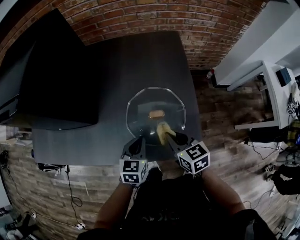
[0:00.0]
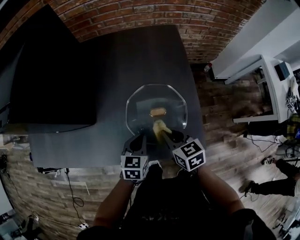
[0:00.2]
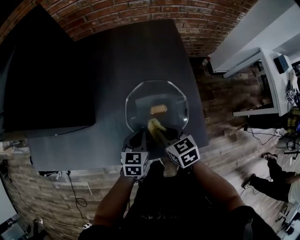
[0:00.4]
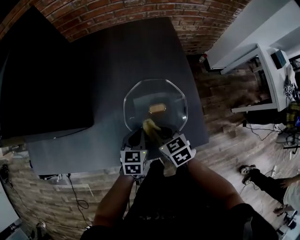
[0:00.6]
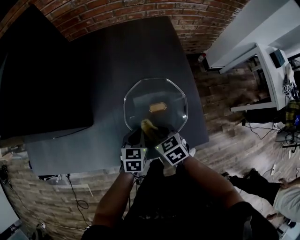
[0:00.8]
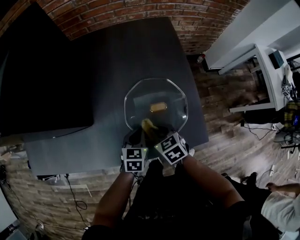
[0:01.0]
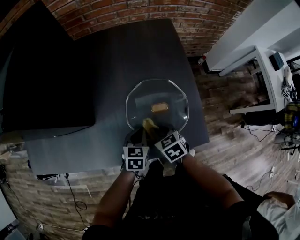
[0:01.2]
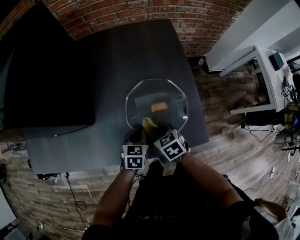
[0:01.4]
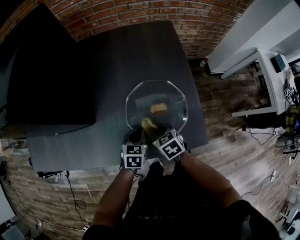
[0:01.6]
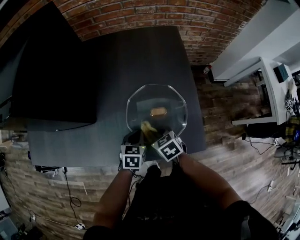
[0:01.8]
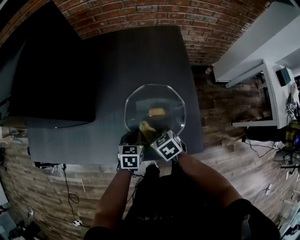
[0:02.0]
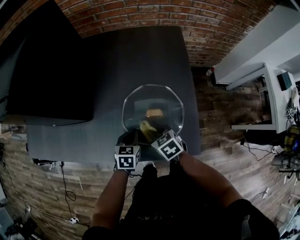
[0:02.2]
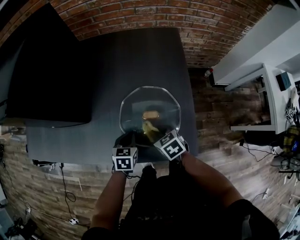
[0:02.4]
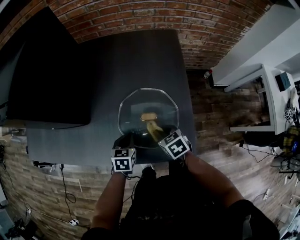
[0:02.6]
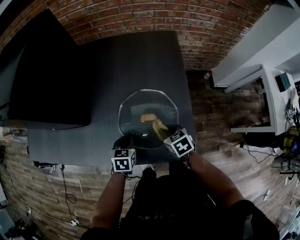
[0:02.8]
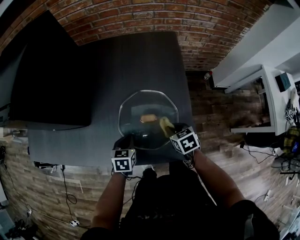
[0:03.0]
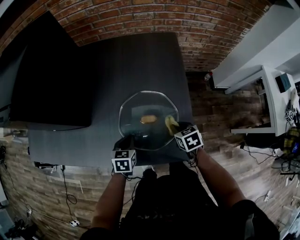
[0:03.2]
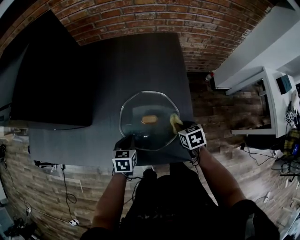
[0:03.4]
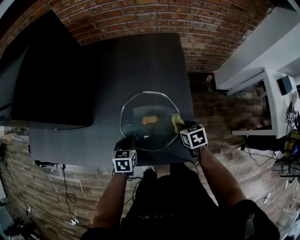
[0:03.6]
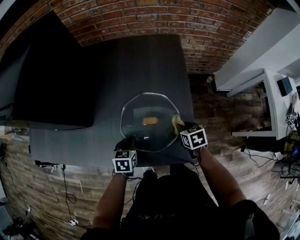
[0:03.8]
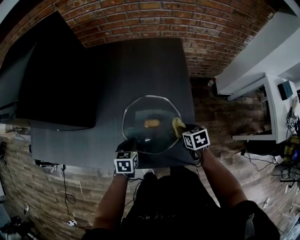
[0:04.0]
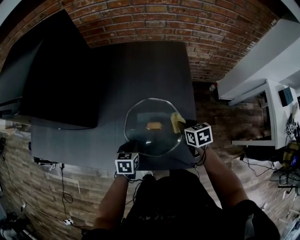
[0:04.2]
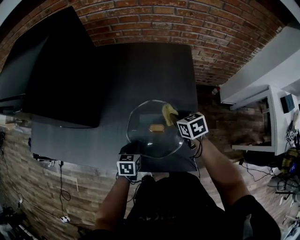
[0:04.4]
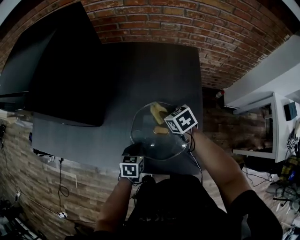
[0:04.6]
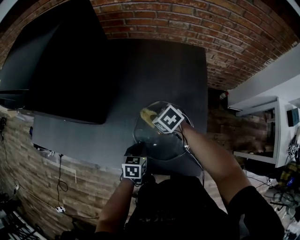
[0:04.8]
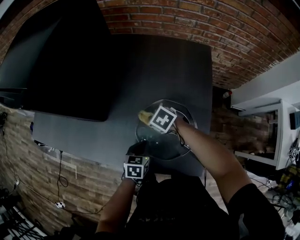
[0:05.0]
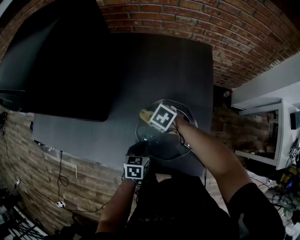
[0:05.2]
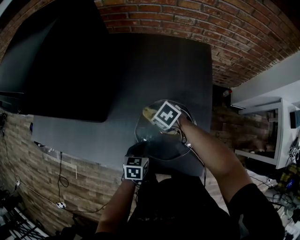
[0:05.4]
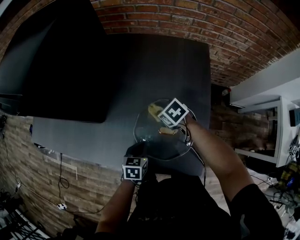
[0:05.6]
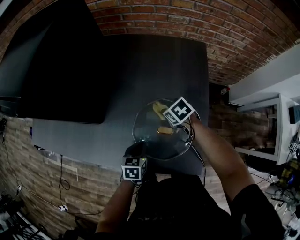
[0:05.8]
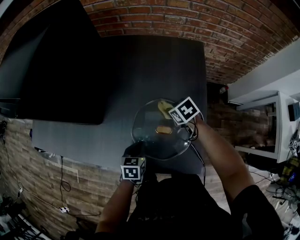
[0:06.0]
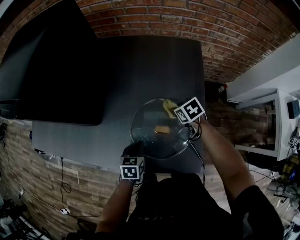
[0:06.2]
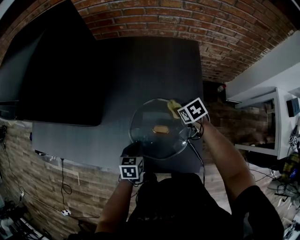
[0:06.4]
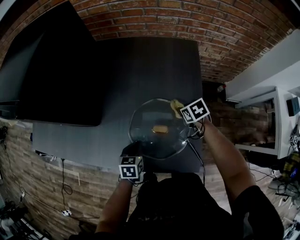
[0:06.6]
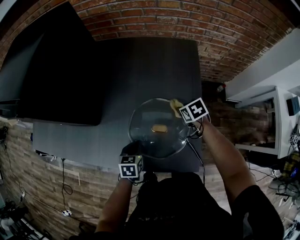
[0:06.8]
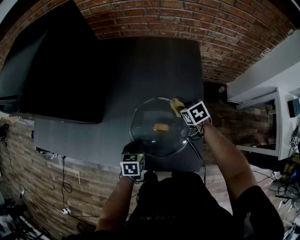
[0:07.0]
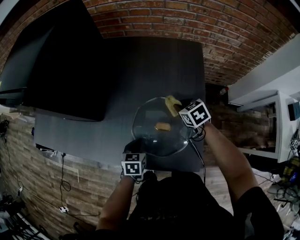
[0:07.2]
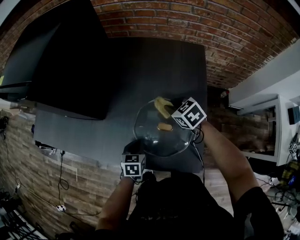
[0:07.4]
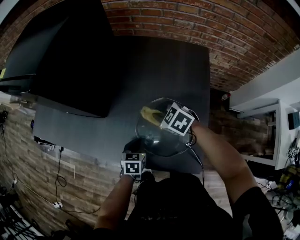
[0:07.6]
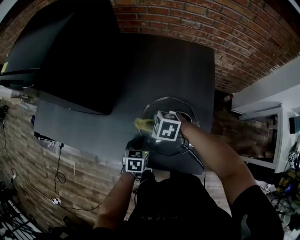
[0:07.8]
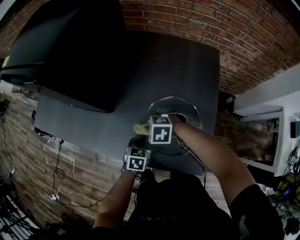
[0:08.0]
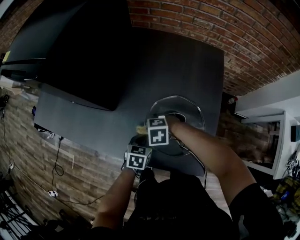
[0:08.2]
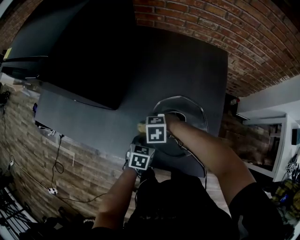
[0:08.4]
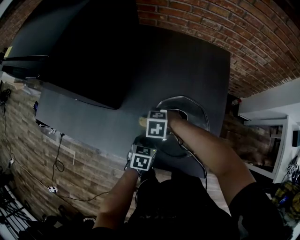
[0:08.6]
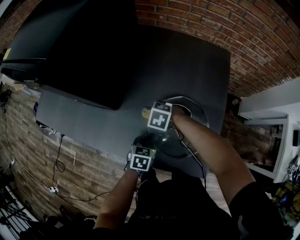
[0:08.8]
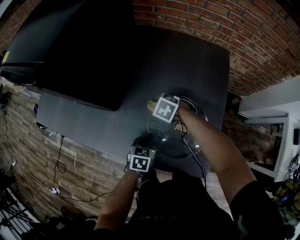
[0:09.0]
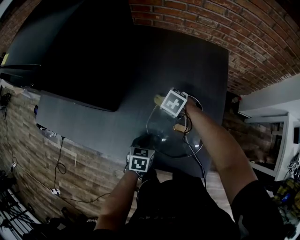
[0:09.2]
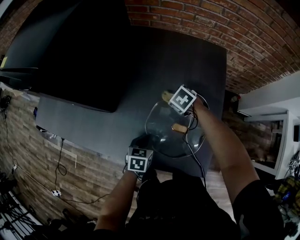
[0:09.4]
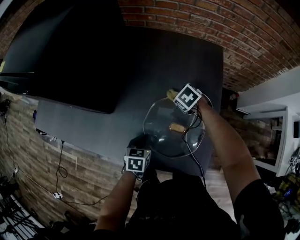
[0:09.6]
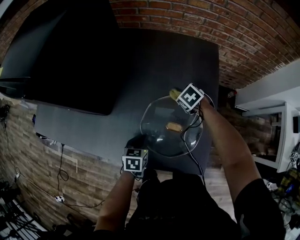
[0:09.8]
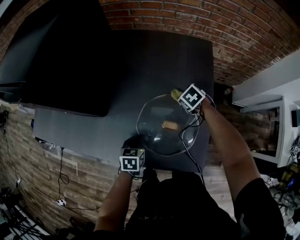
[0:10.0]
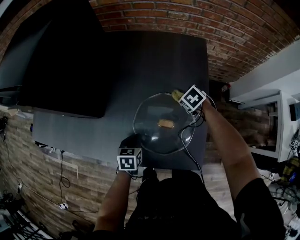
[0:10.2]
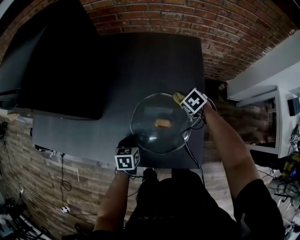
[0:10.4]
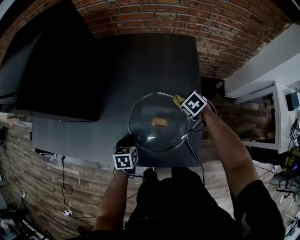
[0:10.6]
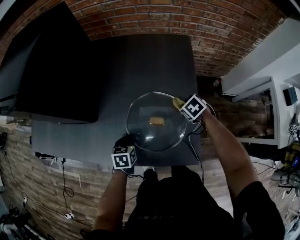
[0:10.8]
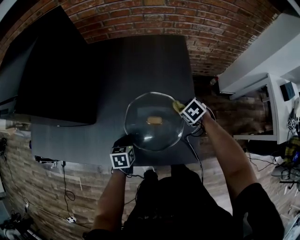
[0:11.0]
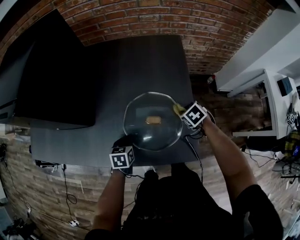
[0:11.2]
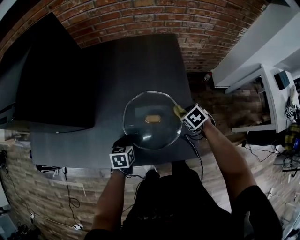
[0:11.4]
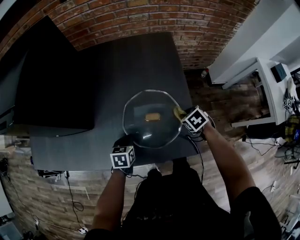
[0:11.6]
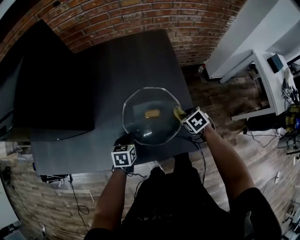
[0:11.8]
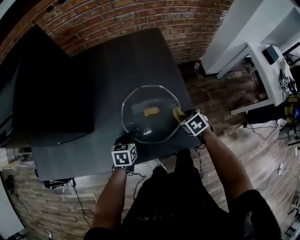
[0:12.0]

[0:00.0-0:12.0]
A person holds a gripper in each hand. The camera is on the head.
0.0 to 1.6 s: The left gripper heads downward, covering roughly 10 cm, while the right gripper travels downward and to the left by some 15 cm, and rotates approximately 20 degrees.
1.6 to 3.0 s: The right gripper travels to the right by roughly 15 cm.
3.0 to 4.4 s: The right gripper moves forward and upward, about 10 cm.
4.4 to 6.0 s: The right gripper travels forward and downward by about 10 cm, reaches some 15 cm to the left, then returns, and turns by about 20 degrees.
6.0 to 7.6 s: The right gripper travels to the left and upward by about 15 cm, and changes its angle by roughly 30 degrees.
7.6 to 9.0 s: The right gripper travels downward by roughly 10 cm, and changes its angle by some 20 degrees.
9.0 to 10.4 s: The right gripper moves to the right, approximately 25 cm, and changes its angle by some 30 degrees.
10.4 to 12.0 s: The right gripper shifts roughly 20 cm backward, and changes its angle by roughly 30 degrees.

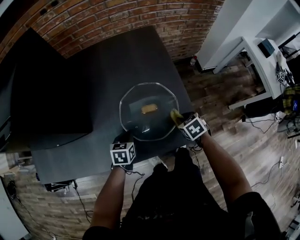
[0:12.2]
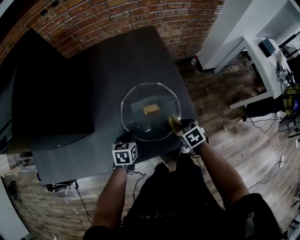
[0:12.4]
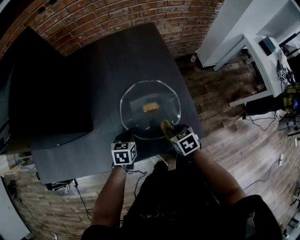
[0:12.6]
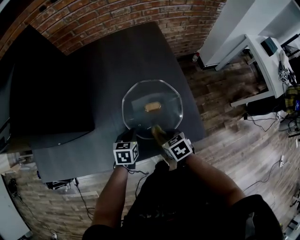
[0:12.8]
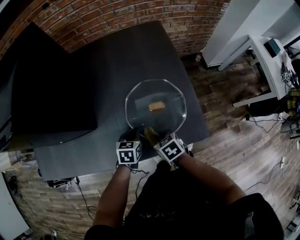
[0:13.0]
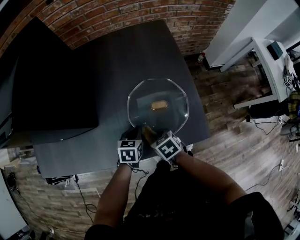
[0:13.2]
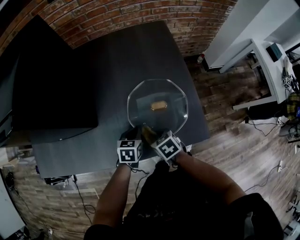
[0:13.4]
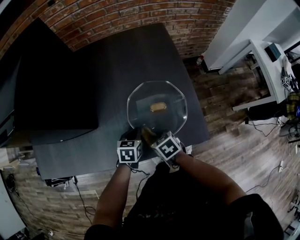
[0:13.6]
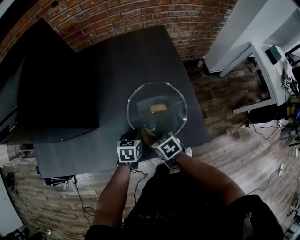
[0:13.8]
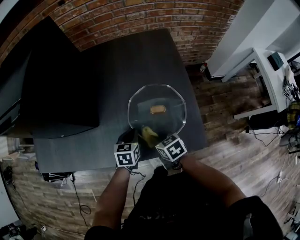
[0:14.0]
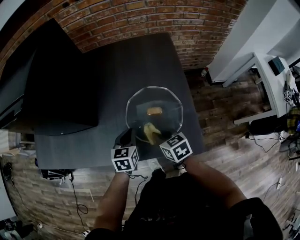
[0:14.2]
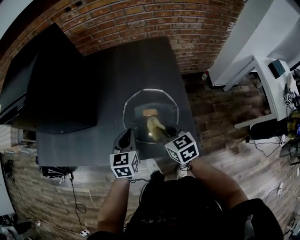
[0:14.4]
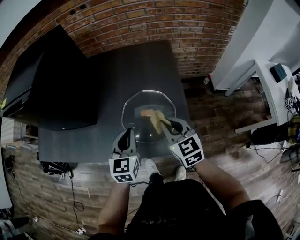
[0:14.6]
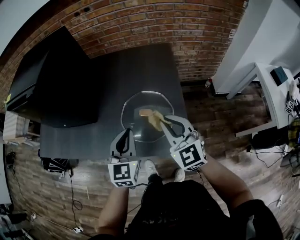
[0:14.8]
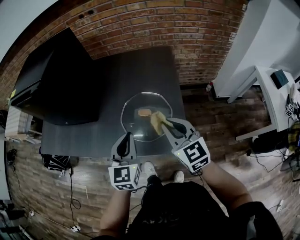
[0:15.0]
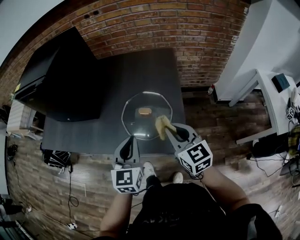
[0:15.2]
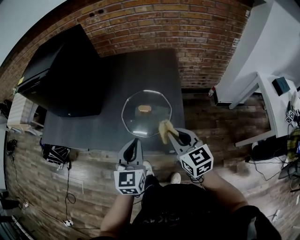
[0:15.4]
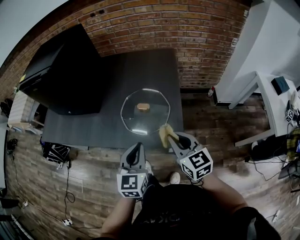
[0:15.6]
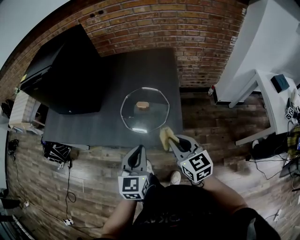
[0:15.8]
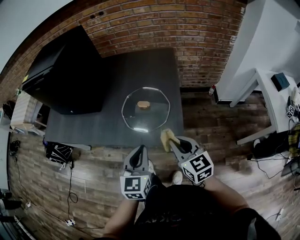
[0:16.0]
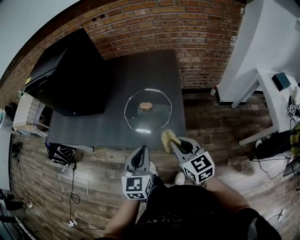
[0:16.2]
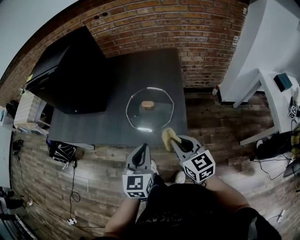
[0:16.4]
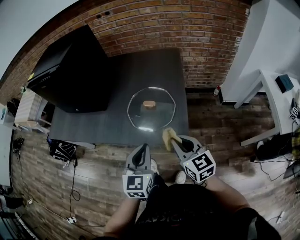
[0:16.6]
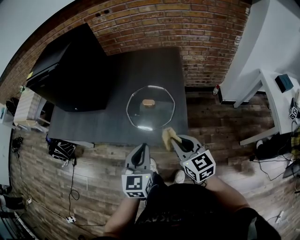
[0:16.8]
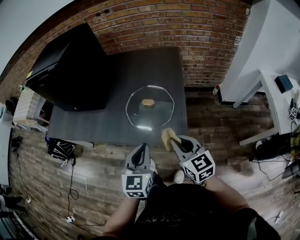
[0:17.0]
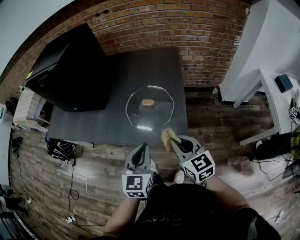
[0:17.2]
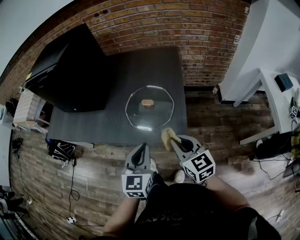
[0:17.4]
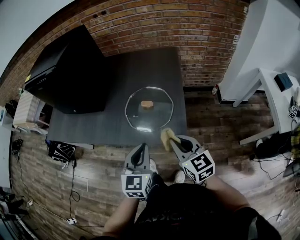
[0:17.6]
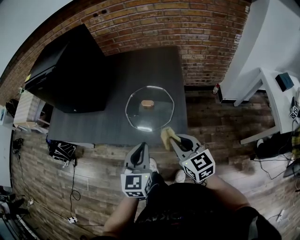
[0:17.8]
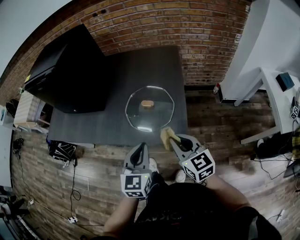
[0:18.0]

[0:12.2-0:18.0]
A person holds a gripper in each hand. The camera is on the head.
12.2 to 13.6 s: The right gripper is displaced to the left by approximately 20 cm.
13.6 to 15.0 s: The right gripper travels upward and to the right by approximately 30 cm, and tilts its fingers about 40 degrees upward, while the left gripper is displaced upward by roughly 25 cm, and tips its fingers upward by approximately 40 degrees.
15.0 to 16.6 s: Both grippers travel together backward, about 15 cm.
16.6 to 18.0 s: The grippers move only a little.

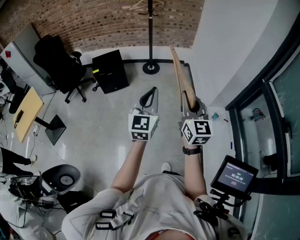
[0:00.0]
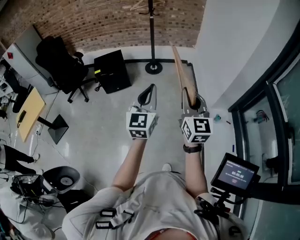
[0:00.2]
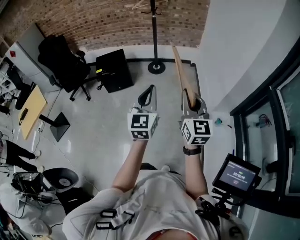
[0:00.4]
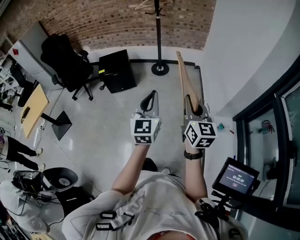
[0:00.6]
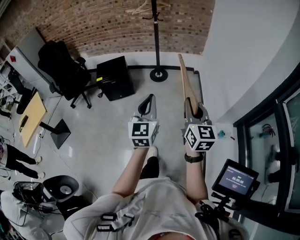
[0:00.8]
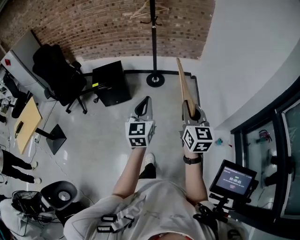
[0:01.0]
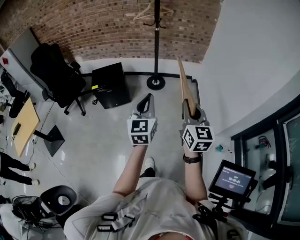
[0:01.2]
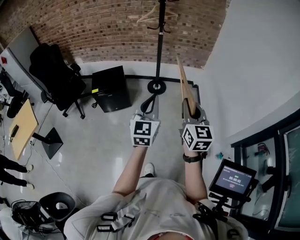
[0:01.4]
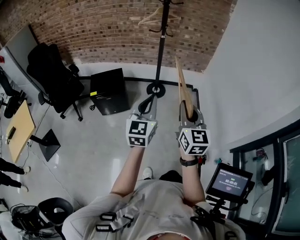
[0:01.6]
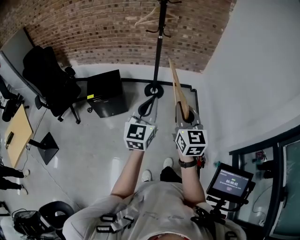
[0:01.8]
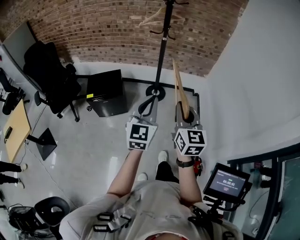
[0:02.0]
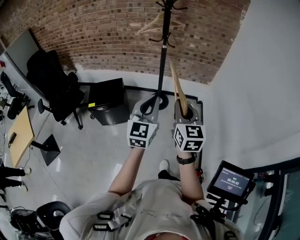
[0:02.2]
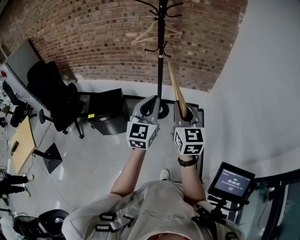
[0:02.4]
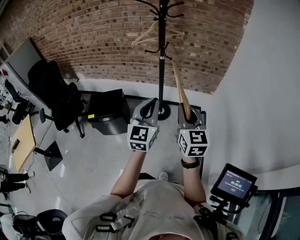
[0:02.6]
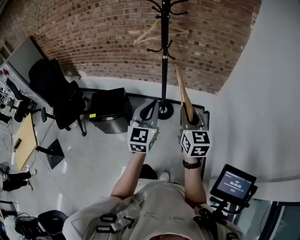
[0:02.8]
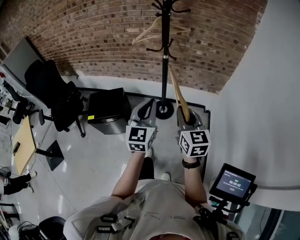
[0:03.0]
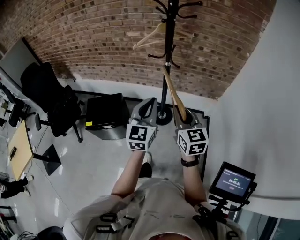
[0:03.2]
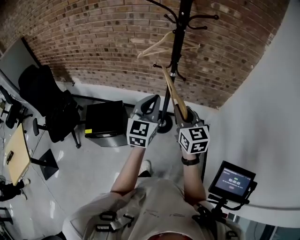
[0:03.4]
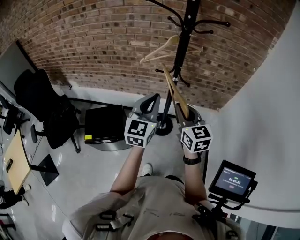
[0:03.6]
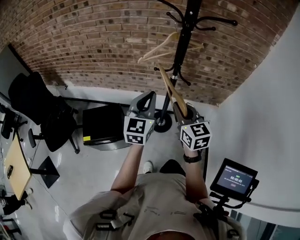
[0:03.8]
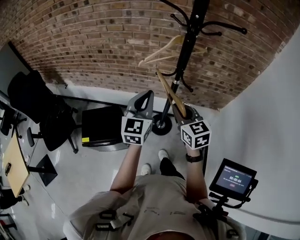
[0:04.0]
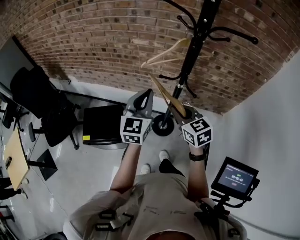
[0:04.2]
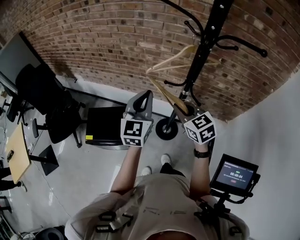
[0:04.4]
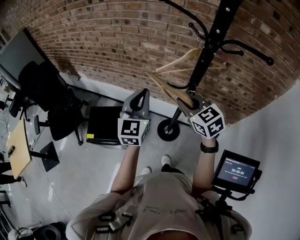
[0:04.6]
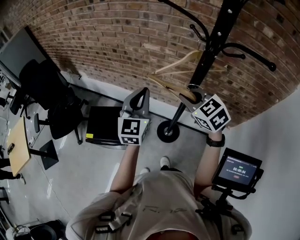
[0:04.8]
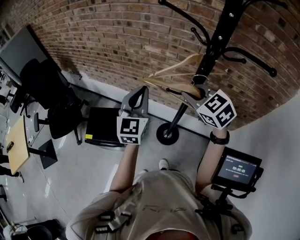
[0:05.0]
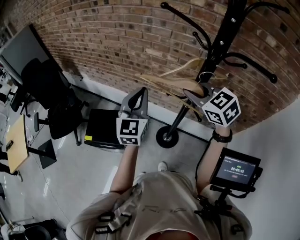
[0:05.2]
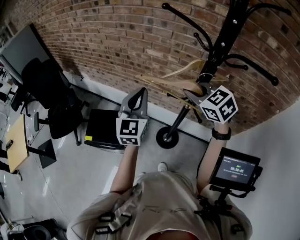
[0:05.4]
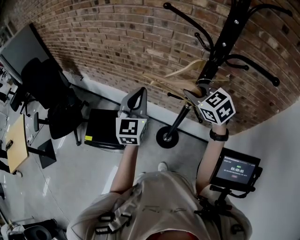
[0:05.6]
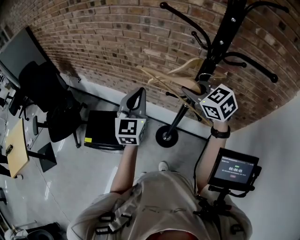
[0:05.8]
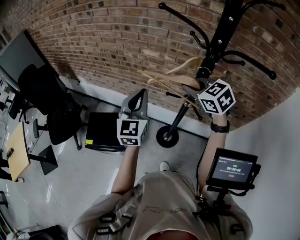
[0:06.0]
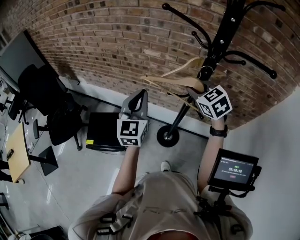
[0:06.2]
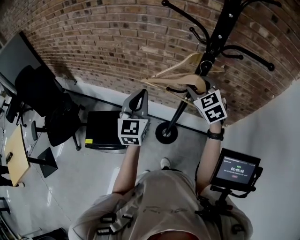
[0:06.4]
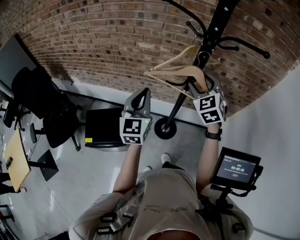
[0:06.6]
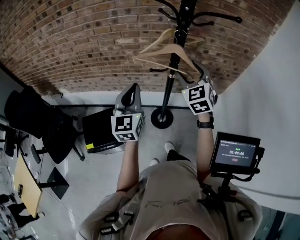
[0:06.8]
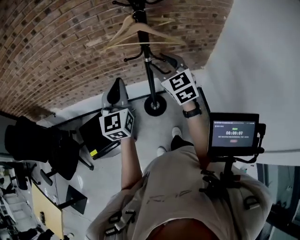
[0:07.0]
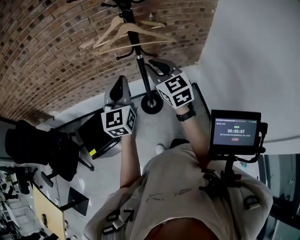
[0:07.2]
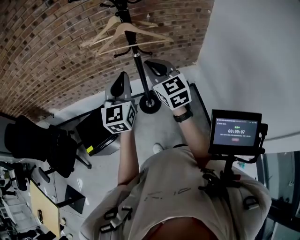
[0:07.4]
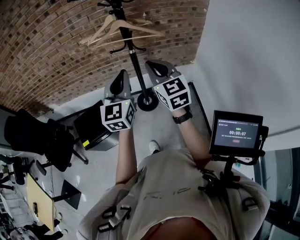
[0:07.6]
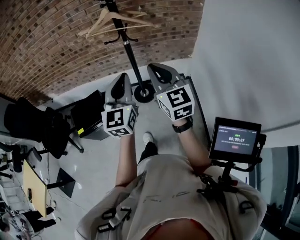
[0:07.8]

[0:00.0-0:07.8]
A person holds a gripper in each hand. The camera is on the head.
0.0 to 1.6 s: Both grippers move forward, about 35 cm.
1.6 to 3.2 s: The two grippers travel together, forward, approximately 40 cm.
3.2 to 4.6 s: Both grippers move forward, about 30 cm. The right gripper rotates some 40 degrees.
4.6 to 6.2 s: The right gripper is displaced forward and to the right by some 10 cm.
6.2 to 7.8 s: The right gripper moves roughly 40 cm, points its fingers roughly 30 degrees further upward, and opens and closes again. Meanwhile the left gripper ends up some 40 cm from where it was, and swivels approximately 20 degrees.
